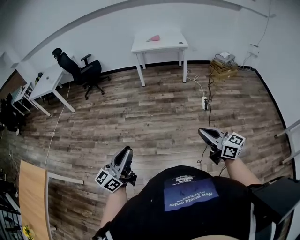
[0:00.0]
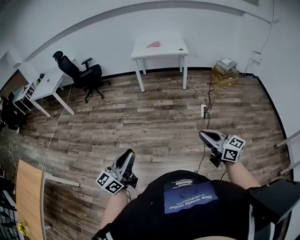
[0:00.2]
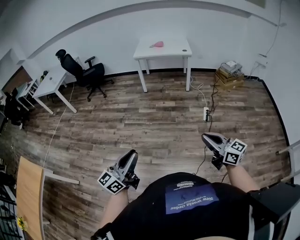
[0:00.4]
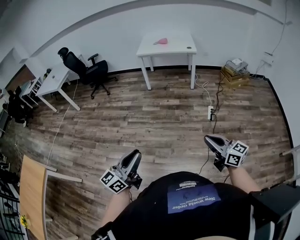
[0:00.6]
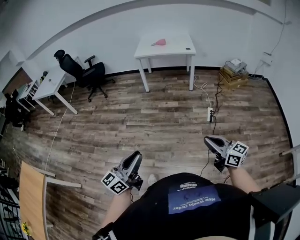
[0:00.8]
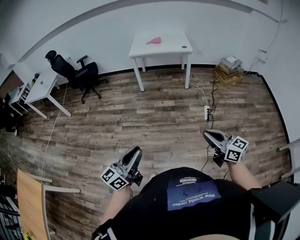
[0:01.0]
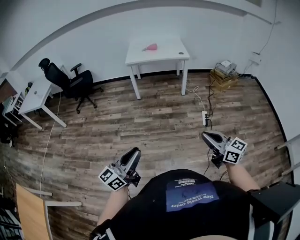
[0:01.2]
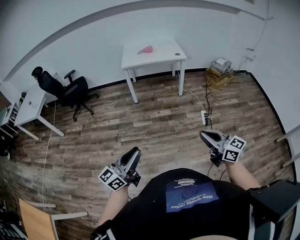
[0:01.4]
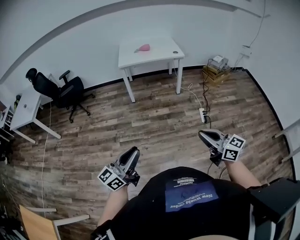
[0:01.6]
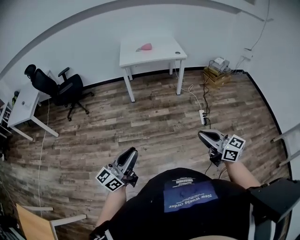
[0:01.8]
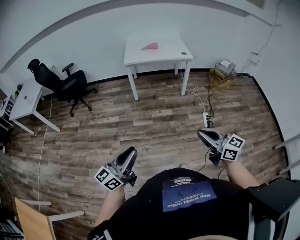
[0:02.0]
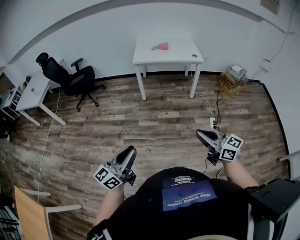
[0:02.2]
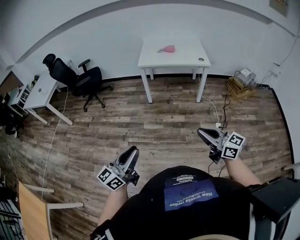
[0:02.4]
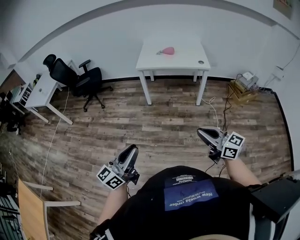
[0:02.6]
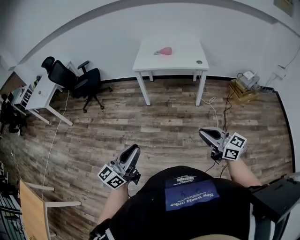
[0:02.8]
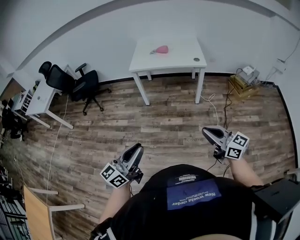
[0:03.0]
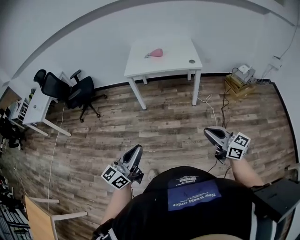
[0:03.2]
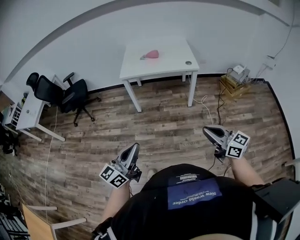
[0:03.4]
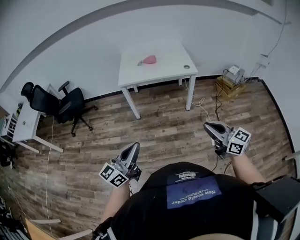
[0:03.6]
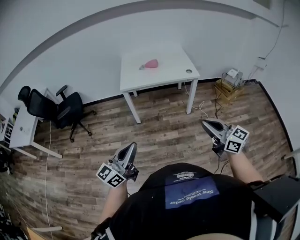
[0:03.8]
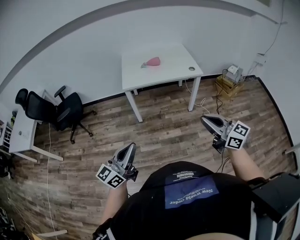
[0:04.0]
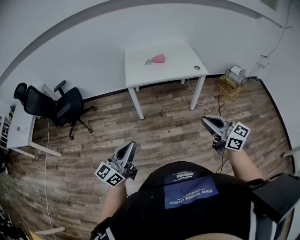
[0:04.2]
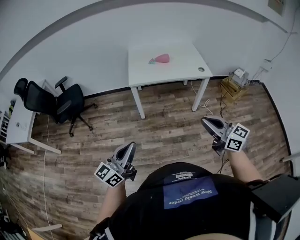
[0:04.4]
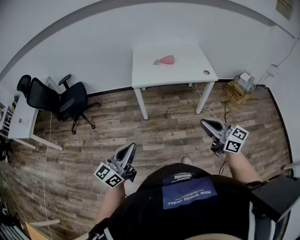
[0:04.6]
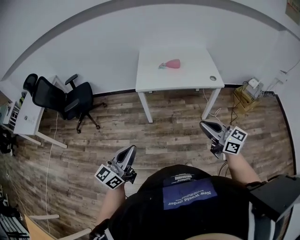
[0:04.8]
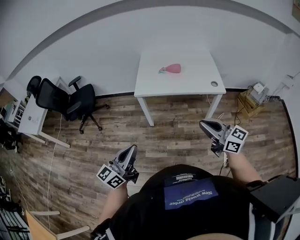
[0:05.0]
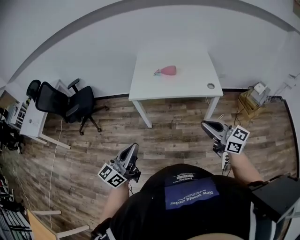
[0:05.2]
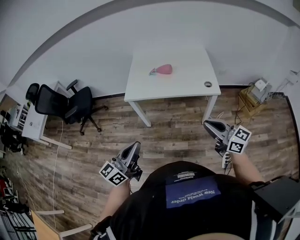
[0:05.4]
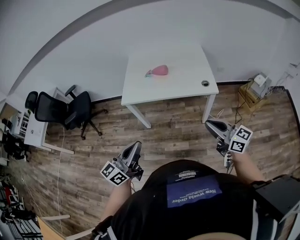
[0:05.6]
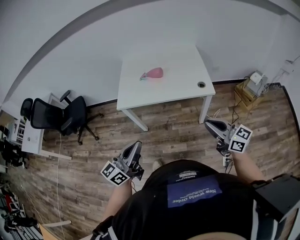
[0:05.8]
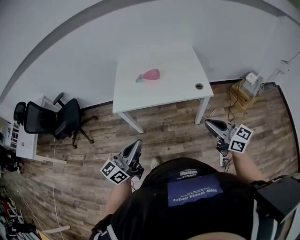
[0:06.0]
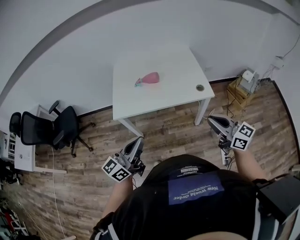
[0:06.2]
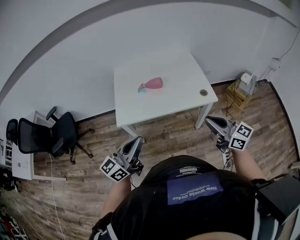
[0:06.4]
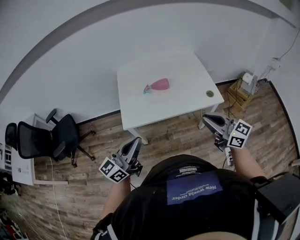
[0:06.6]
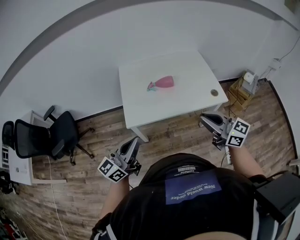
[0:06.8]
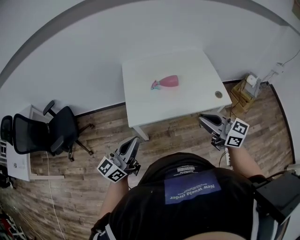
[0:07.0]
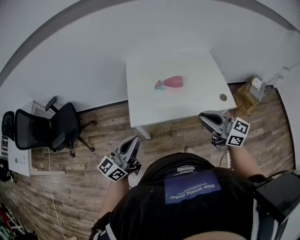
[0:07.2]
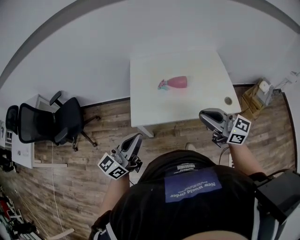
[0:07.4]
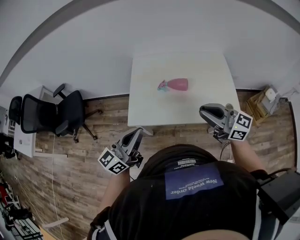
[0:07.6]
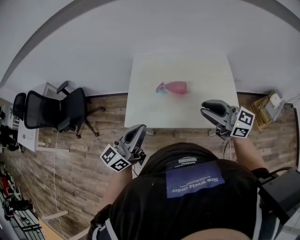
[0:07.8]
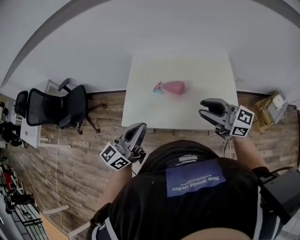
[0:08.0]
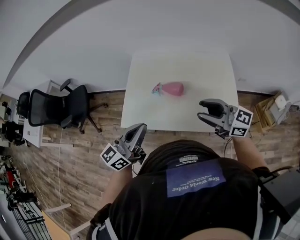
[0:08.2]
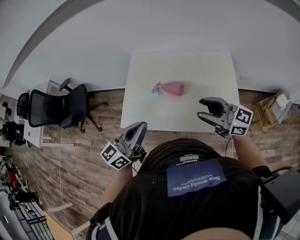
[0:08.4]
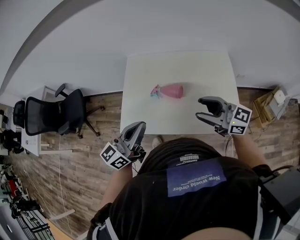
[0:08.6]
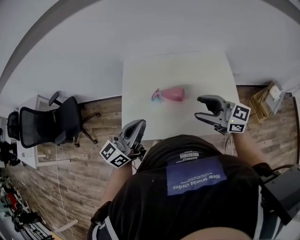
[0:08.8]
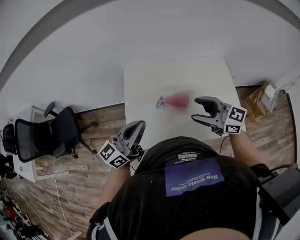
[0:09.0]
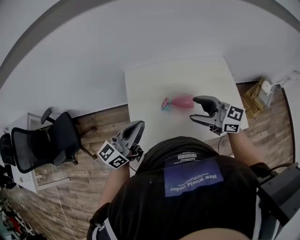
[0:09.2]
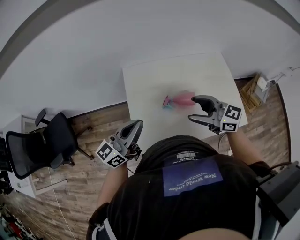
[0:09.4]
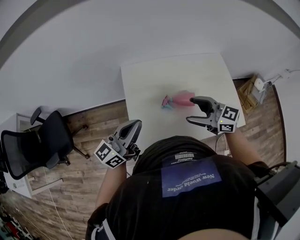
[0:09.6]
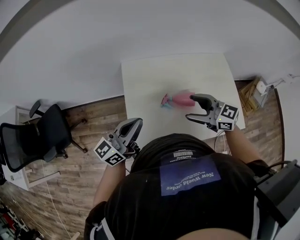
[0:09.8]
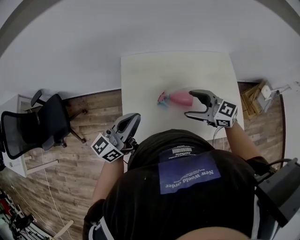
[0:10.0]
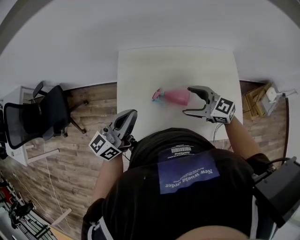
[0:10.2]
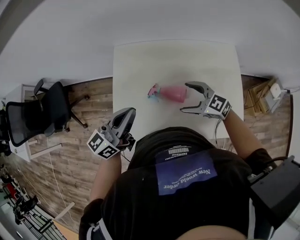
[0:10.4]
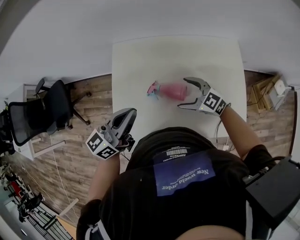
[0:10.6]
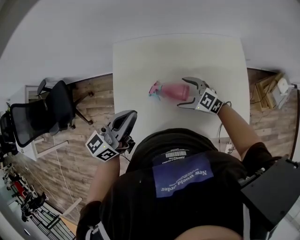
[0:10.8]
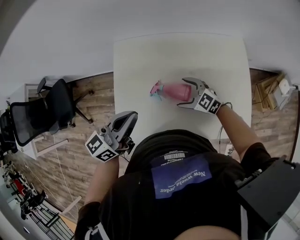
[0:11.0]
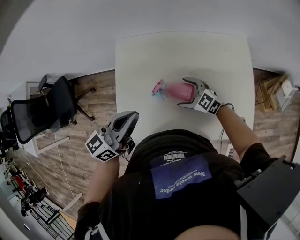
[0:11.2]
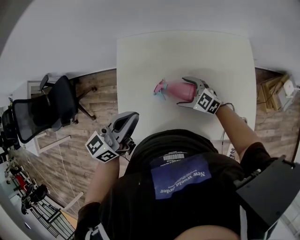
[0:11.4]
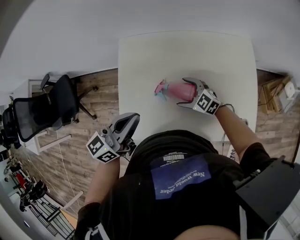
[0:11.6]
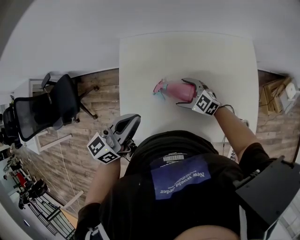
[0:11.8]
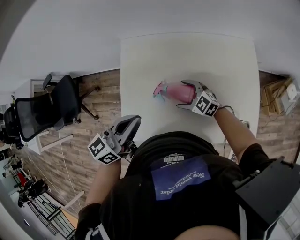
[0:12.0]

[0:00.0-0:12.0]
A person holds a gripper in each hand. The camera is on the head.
0:00.0 to 0:01.6: Both grippers travel together forward, roughly 30 cm.
0:01.6 to 0:03.0: Both grippers travel together forward and to the right, about 30 cm.
0:03.0 to 0:04.4: Both grippers move to the left and forward, about 30 cm.
0:04.4 to 0:06.0: The right gripper moves forward and to the right, roughly 35 cm, while the left gripper goes about 35 cm to the right and forward.
0:06.0 to 0:07.6: Both grippers move forward and to the left, roughly 30 cm.
0:07.6 to 0:09.0: Both grippers travel together forward, about 15 cm. The right gripper opens.
0:09.0 to 0:10.4: The left gripper travels forward by about 10 cm, and moves approximately 5 cm to the left and comes back. The right gripper shifts some 20 cm downward and forward, rotates roughly 20 degrees, and opens its fingers.
0:10.4 to 0:12.0: The right gripper moves downward, about 15 cm.

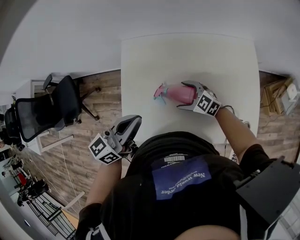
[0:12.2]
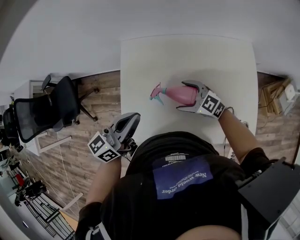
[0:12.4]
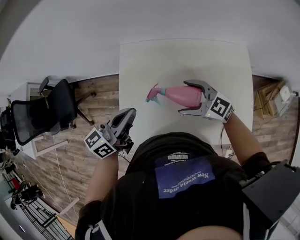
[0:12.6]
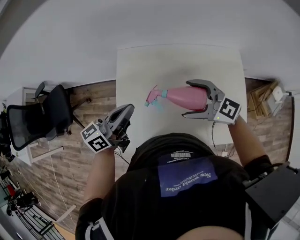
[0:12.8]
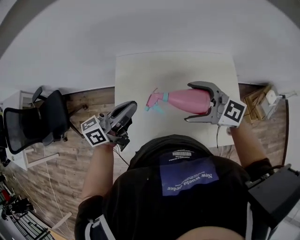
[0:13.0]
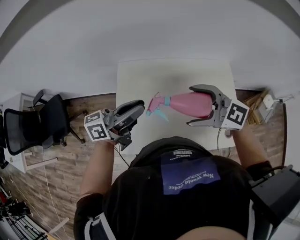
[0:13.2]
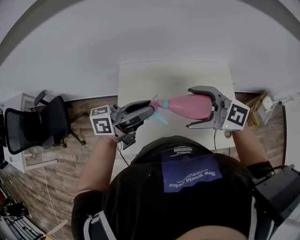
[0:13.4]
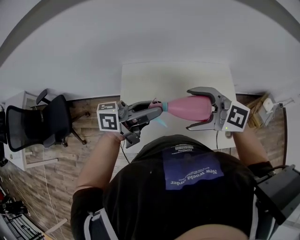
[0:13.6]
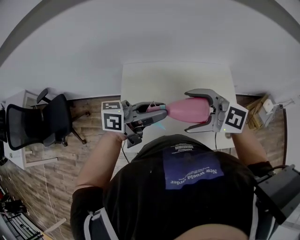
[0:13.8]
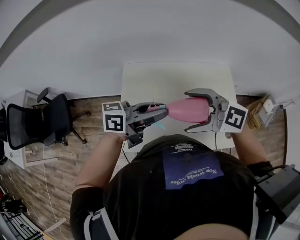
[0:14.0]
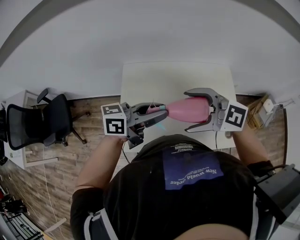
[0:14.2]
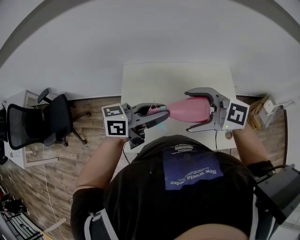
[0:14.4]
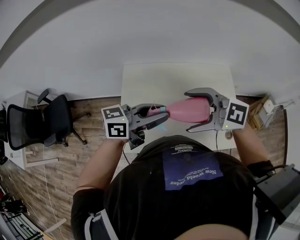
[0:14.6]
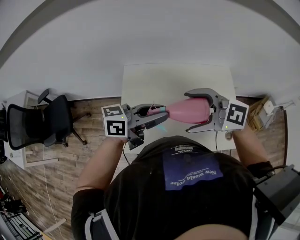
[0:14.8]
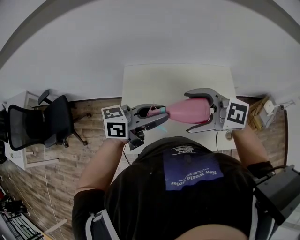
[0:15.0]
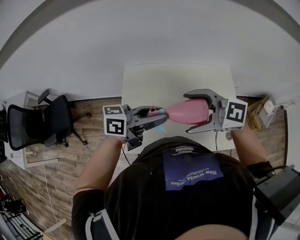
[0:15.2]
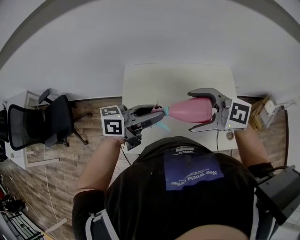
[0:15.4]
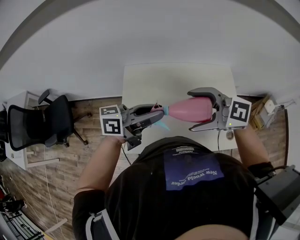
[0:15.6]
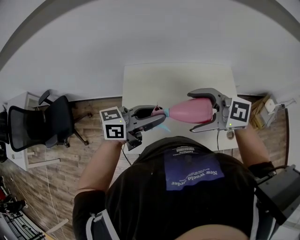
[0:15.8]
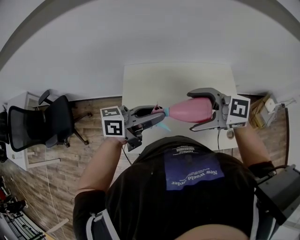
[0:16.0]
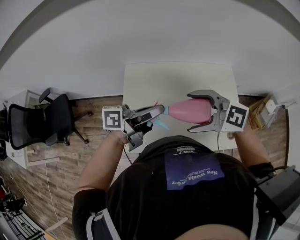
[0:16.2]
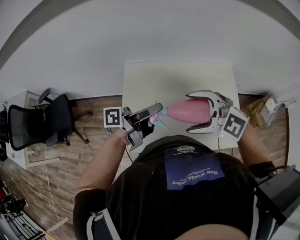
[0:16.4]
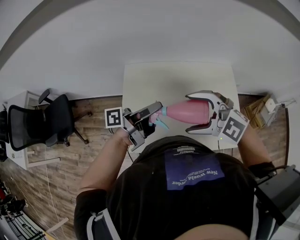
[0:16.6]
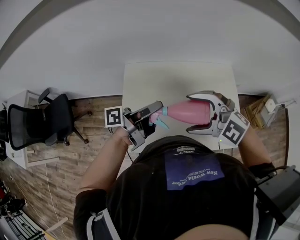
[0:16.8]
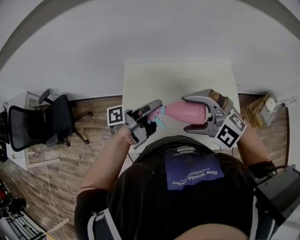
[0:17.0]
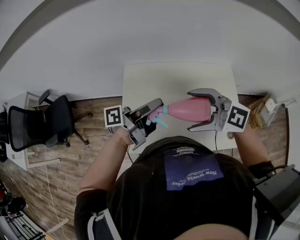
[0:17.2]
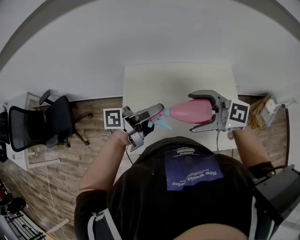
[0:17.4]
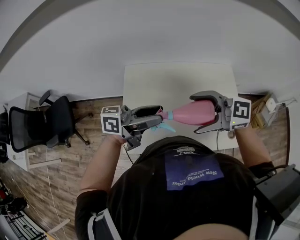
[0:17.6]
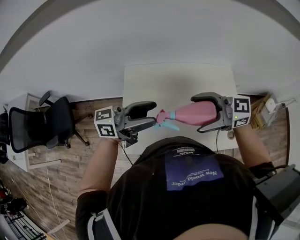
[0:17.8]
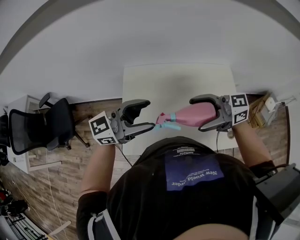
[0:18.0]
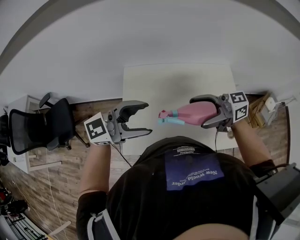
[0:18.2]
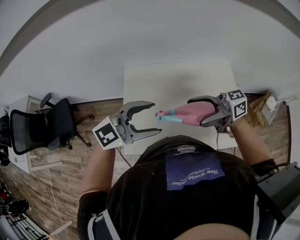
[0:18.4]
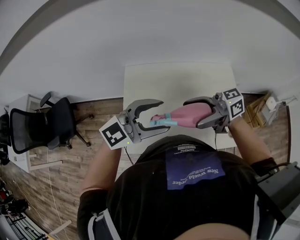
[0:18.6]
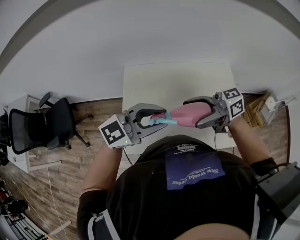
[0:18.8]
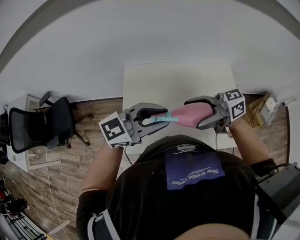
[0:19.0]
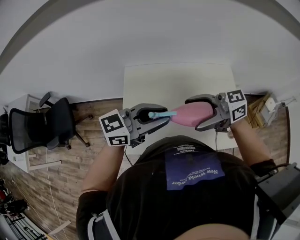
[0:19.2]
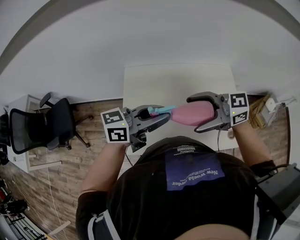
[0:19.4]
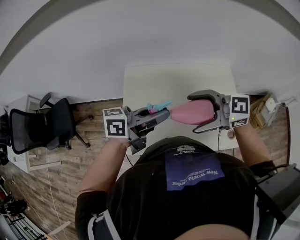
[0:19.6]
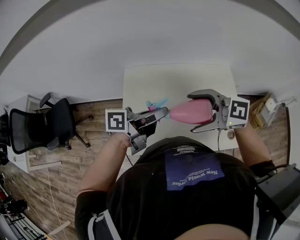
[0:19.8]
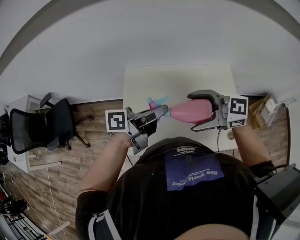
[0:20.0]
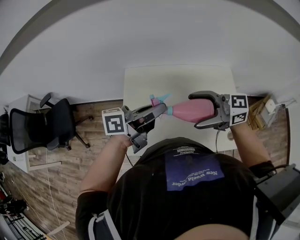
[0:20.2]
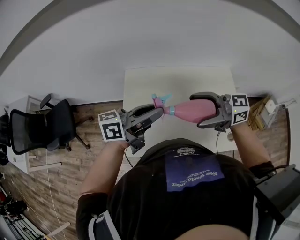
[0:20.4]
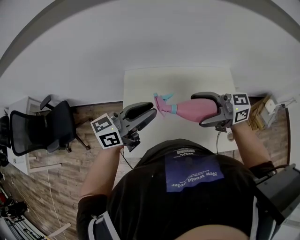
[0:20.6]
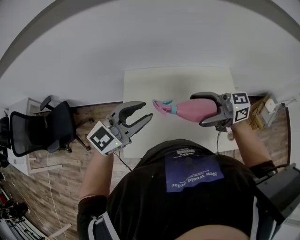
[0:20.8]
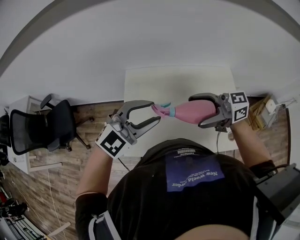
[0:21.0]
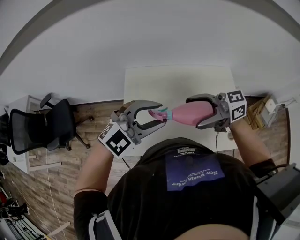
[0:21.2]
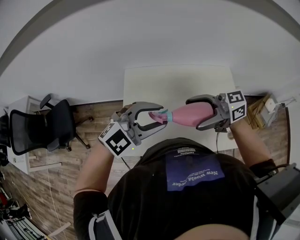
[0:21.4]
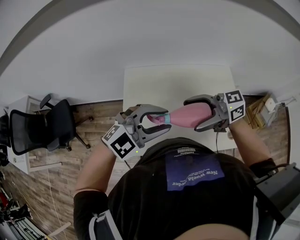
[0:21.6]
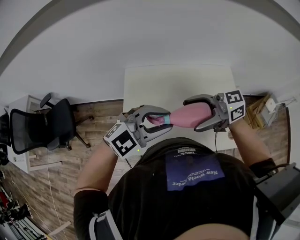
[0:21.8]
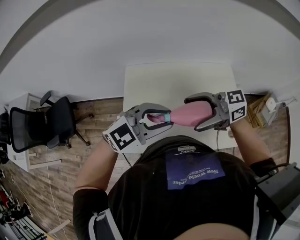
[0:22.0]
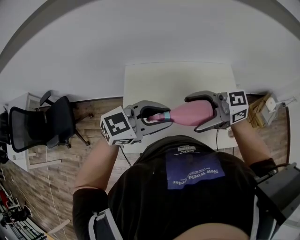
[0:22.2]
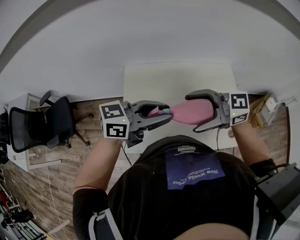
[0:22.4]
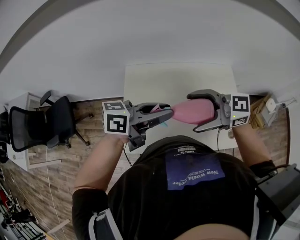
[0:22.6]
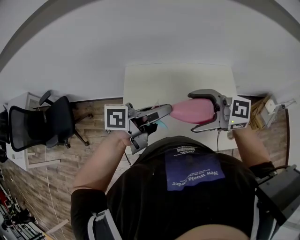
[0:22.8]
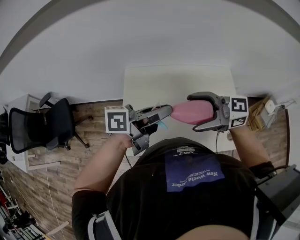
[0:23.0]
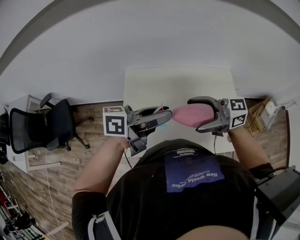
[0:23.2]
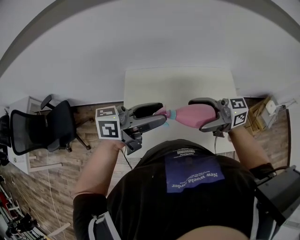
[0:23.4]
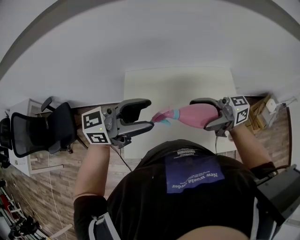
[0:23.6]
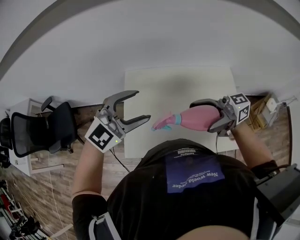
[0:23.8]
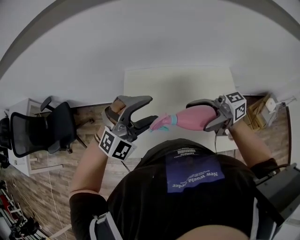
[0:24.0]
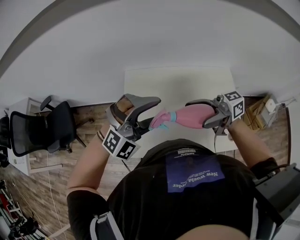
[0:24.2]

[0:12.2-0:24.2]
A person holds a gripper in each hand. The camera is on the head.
0:12.2 to 0:13.8: The right gripper moves upward, some 35 cm, and turns by roughly 20 degrees, while the left gripper goes roughly 10 cm upward, rotates some 40 degrees, and opens its fingers.
0:13.8 to 0:15.2: The grippers stay close to where they were, moving slightly.
0:15.2 to 0:16.6: The left gripper ends up about 5 cm from where it was, and swivels some 40 degrees, while the right gripper rotates some 30 degrees.
0:16.6 to 0:18.2: The left gripper moves some 10 cm, twists approximately 80 degrees clockwise, seen from behind, and opens up, while the right gripper shifts by about 5 cm, and rotates around the line of its fingers by roughly 50 degrees, clockwise from behind.
0:18.2 to 0:19.8: The left gripper moves some 5 cm, twists some 60 degrees counterclockwise, seen from behind, and closes. The right gripper turns by roughly 30 degrees.
0:19.8 to 0:21.2: The right gripper swivels about 30 degrees, while the left gripper rolls clockwise, seen from behind, by some 90 degrees.
0:21.2 to 0:22.6: The left gripper rolls counterclockwise, seen from behind, by roughly 70 degrees.
0:22.6 to 0:24.2: The left gripper rotates around the line of its fingers by some 110 degrees, clockwise from behind, and opens its fingers. The right gripper changes its angle by some 40 degrees.
